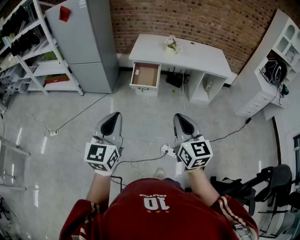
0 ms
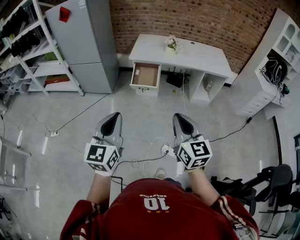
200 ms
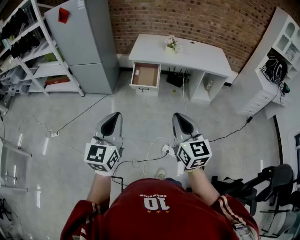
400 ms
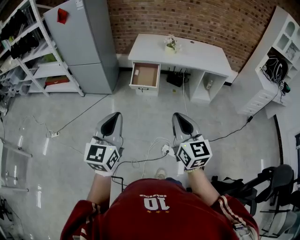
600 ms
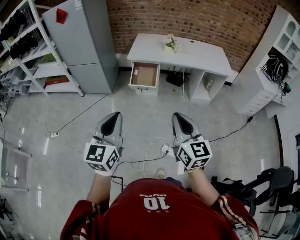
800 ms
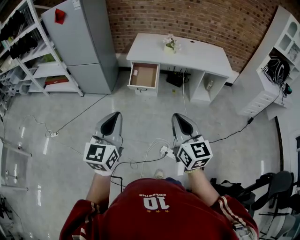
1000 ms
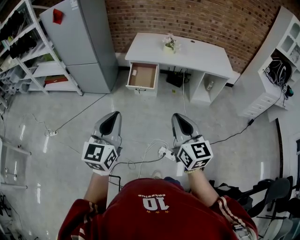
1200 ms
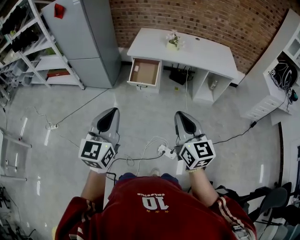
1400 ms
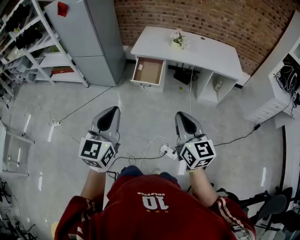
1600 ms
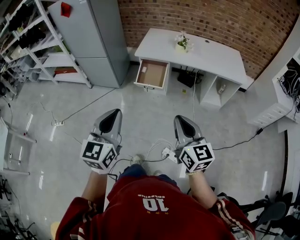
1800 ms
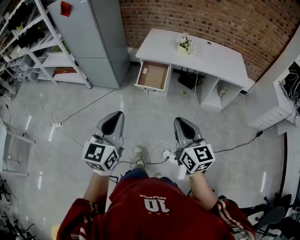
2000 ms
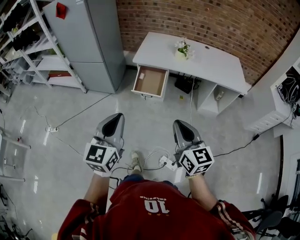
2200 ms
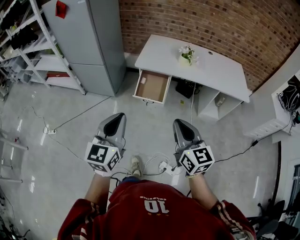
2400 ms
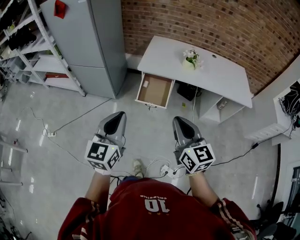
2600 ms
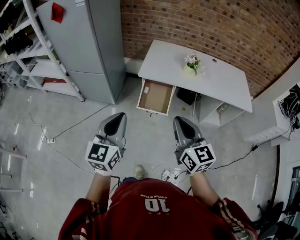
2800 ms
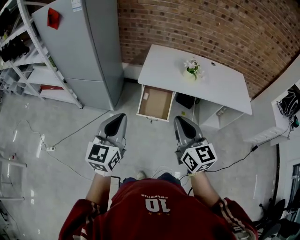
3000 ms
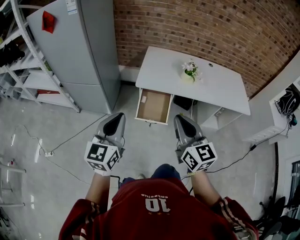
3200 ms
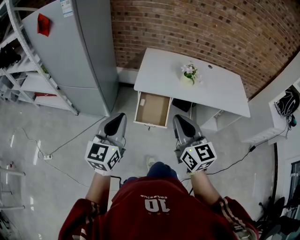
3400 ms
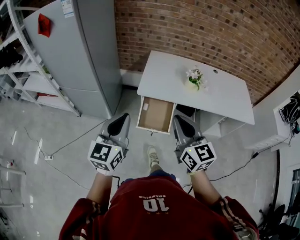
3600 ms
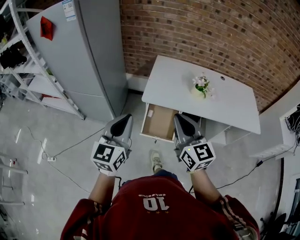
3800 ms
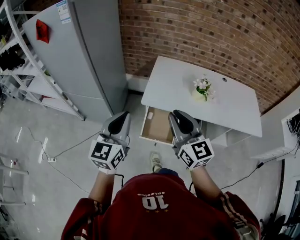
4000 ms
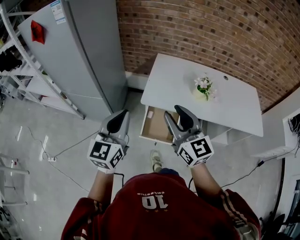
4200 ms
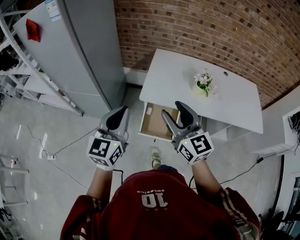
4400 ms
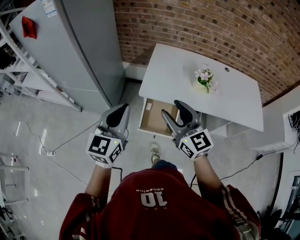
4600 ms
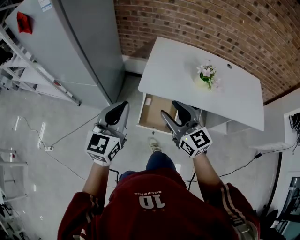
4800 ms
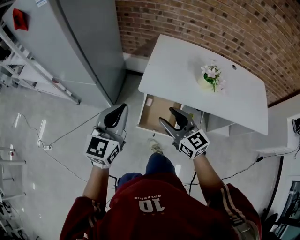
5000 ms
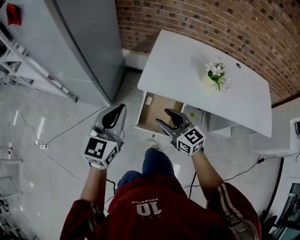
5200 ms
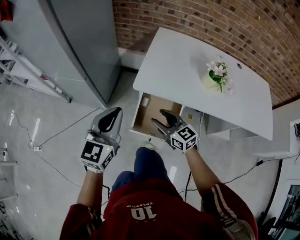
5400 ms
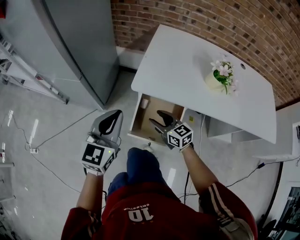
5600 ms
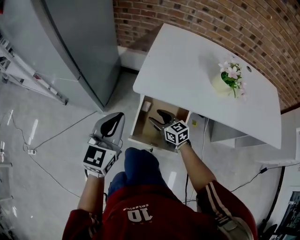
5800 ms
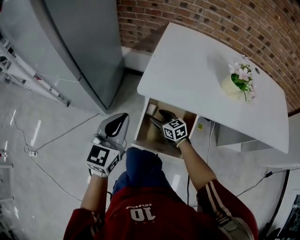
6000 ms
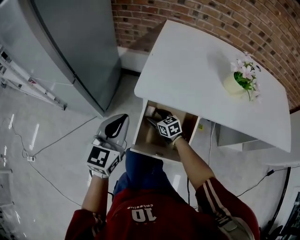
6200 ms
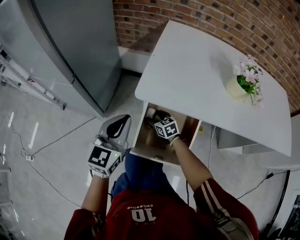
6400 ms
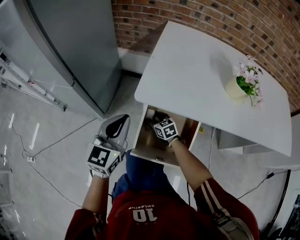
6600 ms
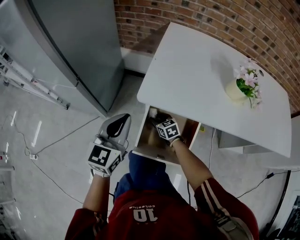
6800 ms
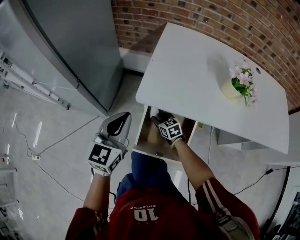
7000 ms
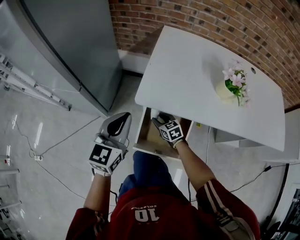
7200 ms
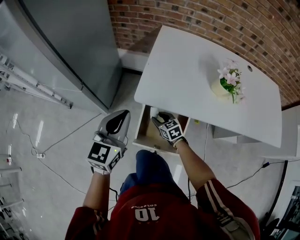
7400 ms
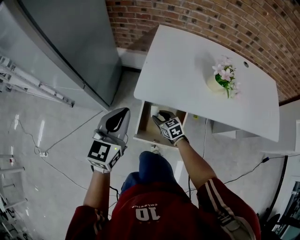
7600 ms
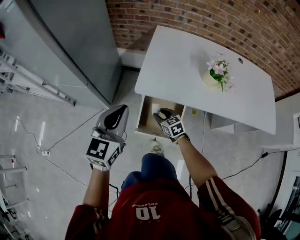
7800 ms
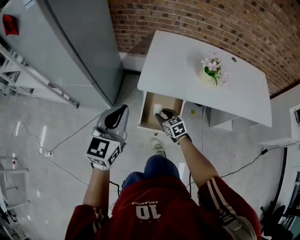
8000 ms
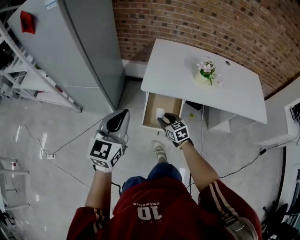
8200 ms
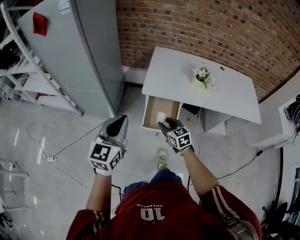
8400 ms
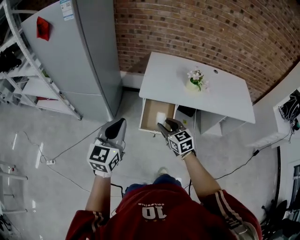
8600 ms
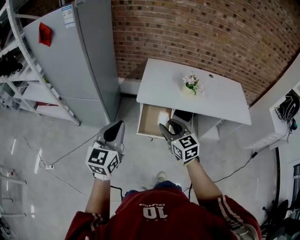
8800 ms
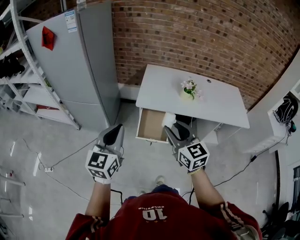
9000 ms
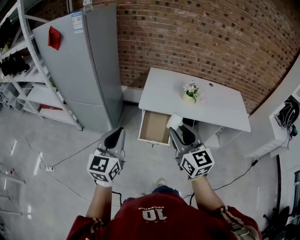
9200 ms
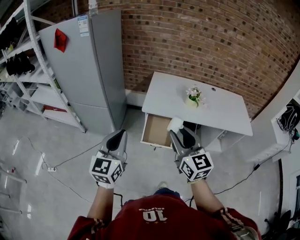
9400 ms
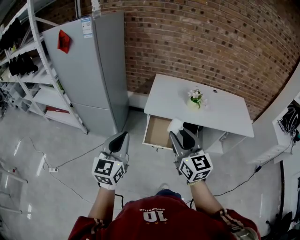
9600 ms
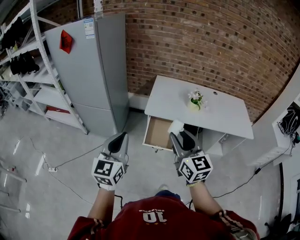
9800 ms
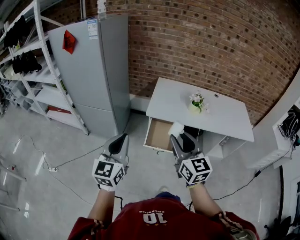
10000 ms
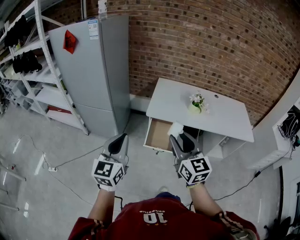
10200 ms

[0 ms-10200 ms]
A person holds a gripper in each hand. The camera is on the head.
0 ms to 1400 ms: Both grippers travel together to the right and forward, approximately 10 cm.
1400 ms to 3000 ms: The right gripper travels forward and to the left by about 35 cm, while the left gripper goes roughly 30 cm forward.
3000 ms to 4400 ms: The two grippers go roughly 25 cm forward. The right gripper opens its fingers.
4400 ms to 5800 ms: The right gripper is displaced downward by about 50 cm, and turns by roughly 30 degrees. The left gripper goes roughly 30 cm downward.
5800 ms to 7200 ms: The left gripper goes some 5 cm forward, and moves roughly 10 cm downward and comes back, while the right gripper travels downward and forward by about 10 cm.
7200 ms to 8800 ms: The two grippers go some 50 cm upward and backward. The right gripper rotates roughly 30 degrees.
8800 ms to 10200 ms: The right gripper moves upward and backward, roughly 15 cm, while the left gripper moves backward, about 5 cm.

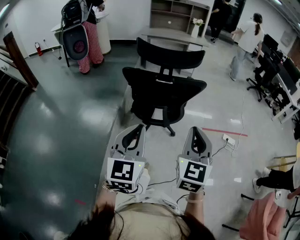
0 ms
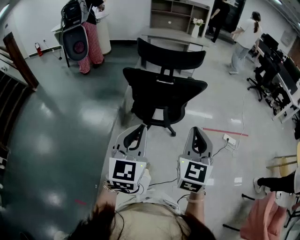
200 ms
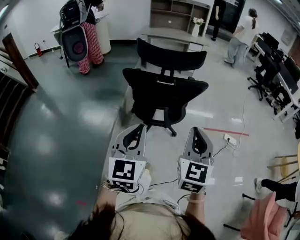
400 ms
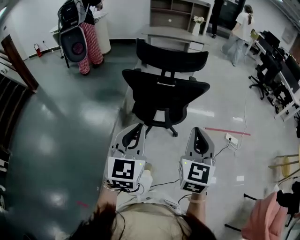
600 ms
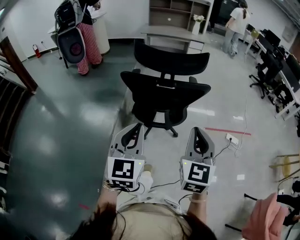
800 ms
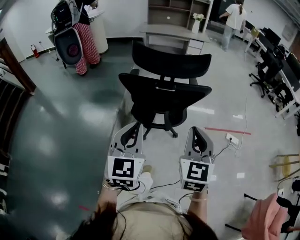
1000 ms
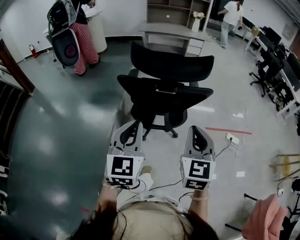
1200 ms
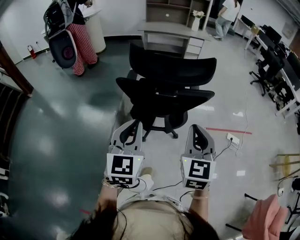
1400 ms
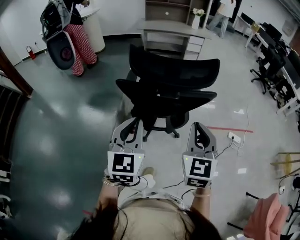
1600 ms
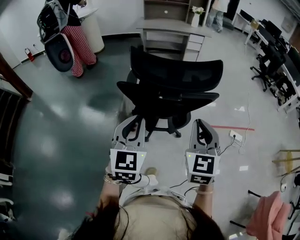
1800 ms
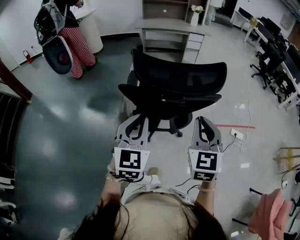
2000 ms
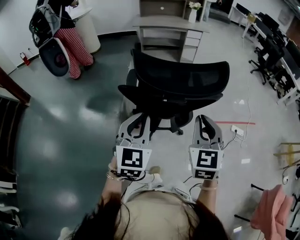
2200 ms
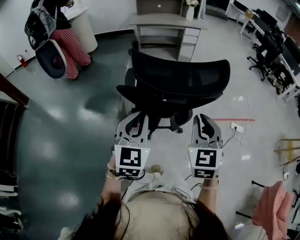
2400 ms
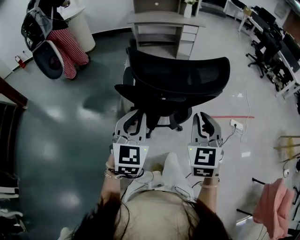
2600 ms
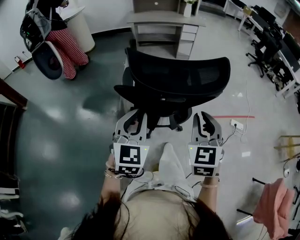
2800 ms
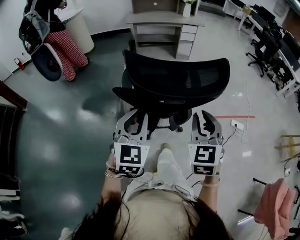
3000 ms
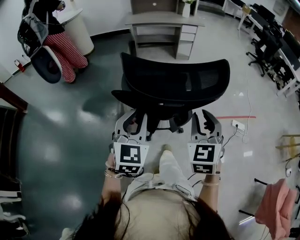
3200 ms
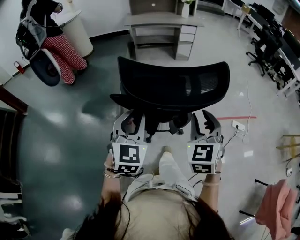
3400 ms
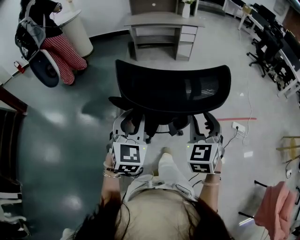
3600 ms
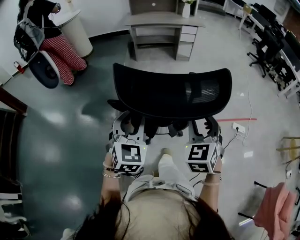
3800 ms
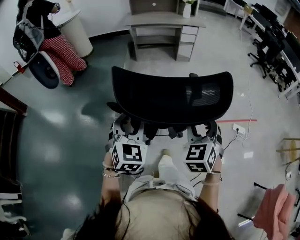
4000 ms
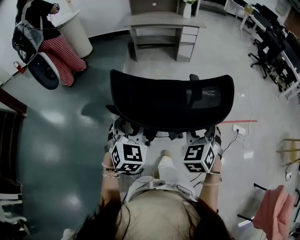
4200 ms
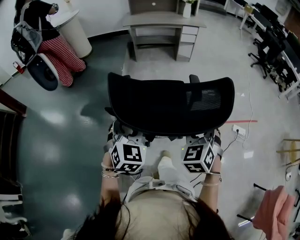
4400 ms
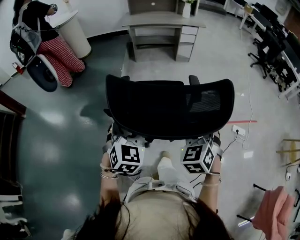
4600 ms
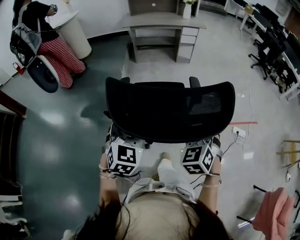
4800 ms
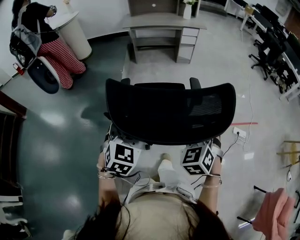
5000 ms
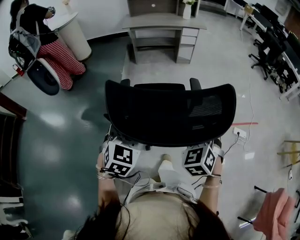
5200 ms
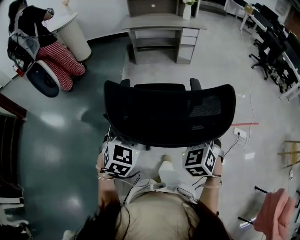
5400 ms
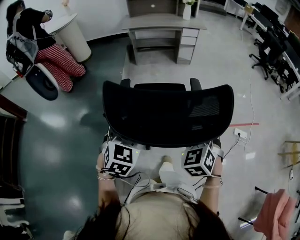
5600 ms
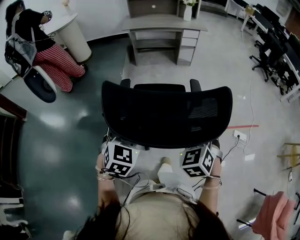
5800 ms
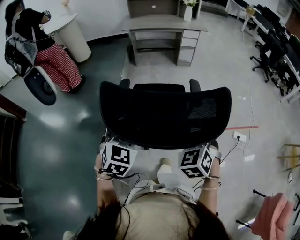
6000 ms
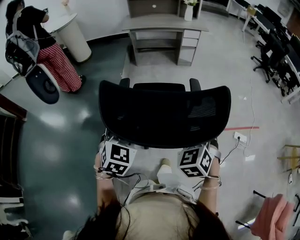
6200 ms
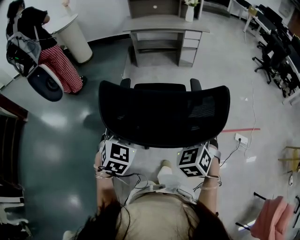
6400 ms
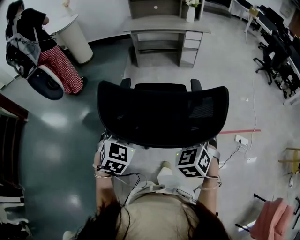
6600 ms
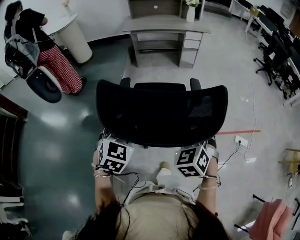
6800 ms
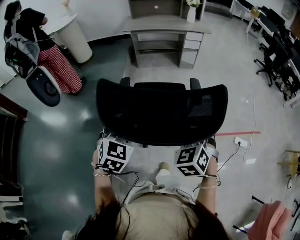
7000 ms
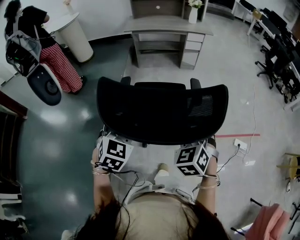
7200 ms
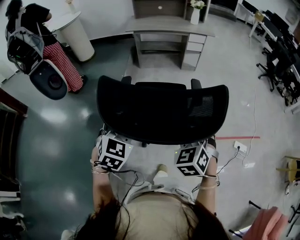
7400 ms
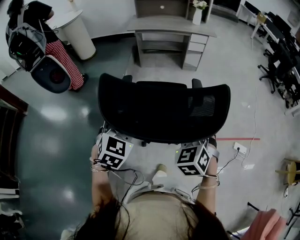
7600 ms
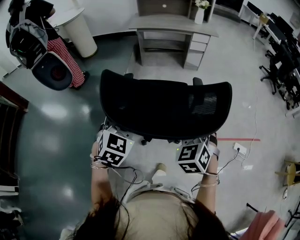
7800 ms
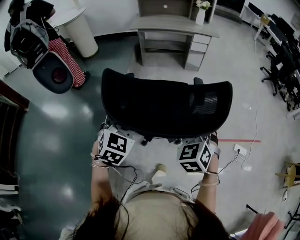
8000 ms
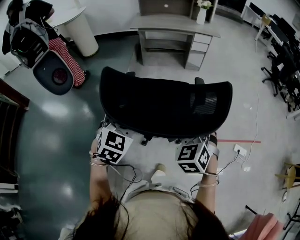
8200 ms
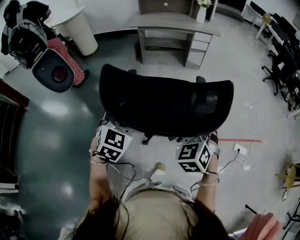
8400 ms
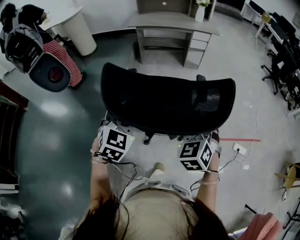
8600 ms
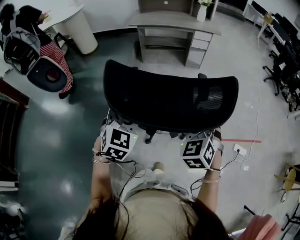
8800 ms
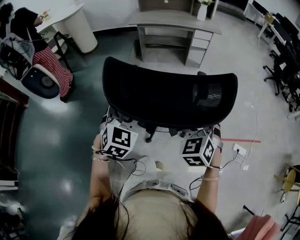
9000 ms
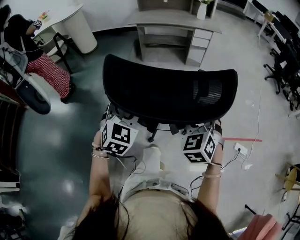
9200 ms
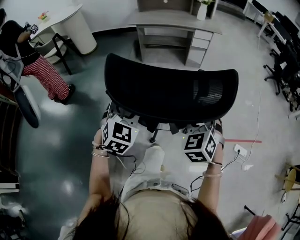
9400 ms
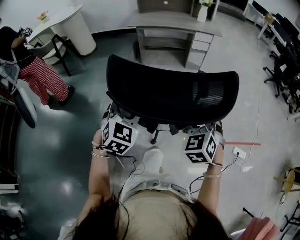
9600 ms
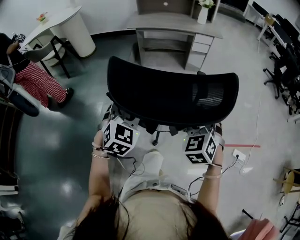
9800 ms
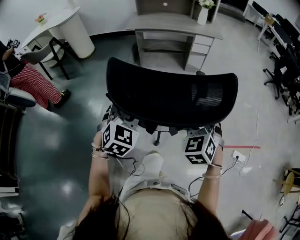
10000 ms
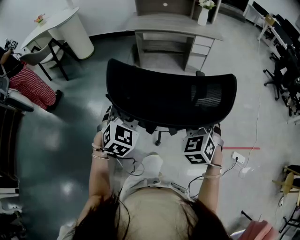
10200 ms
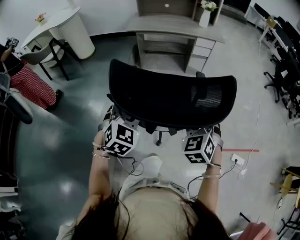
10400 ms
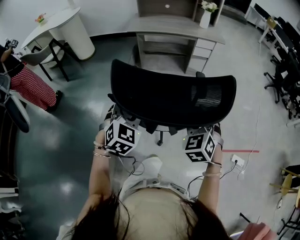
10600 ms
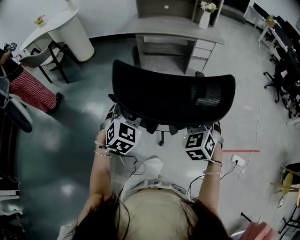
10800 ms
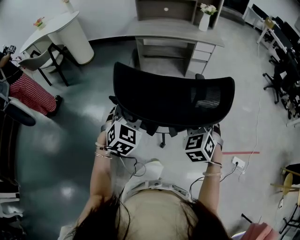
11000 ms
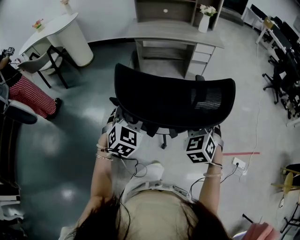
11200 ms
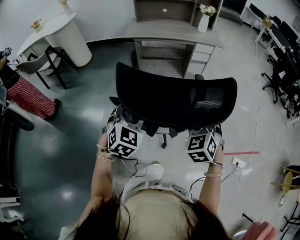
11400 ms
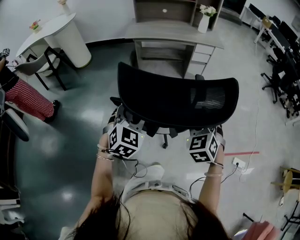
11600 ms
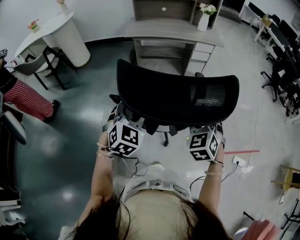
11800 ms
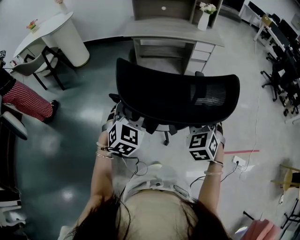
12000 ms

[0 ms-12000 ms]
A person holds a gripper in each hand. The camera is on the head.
0 ms to 1600 ms: The grippers both shift forward by about 15 cm.
1600 ms to 3000 ms: The grippers both shift forward by roughly 10 cm.
3000 ms to 4400 ms: The right gripper is displaced forward and downward by roughly 10 cm, and opens. The left gripper is displaced forward by about 10 cm, and opens its fingers.
4400 ms to 6000 ms: Both grippers travel together forward, approximately 5 cm.
6000 ms to 7600 ms: The grippers both shift forward by about 10 cm.
7600 ms to 9000 ms: The two grippers go about 5 cm forward.
9000 ms to 10400 ms: Both grippers move forward, about 10 cm.
10400 ms to 12000 ms: The grippers both shift forward by roughly 10 cm.

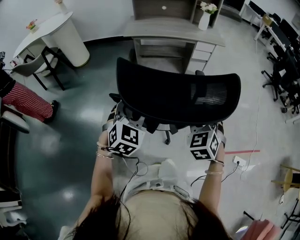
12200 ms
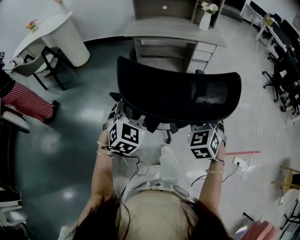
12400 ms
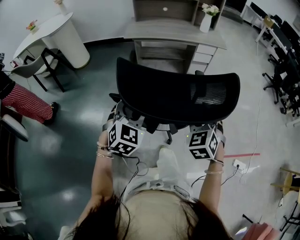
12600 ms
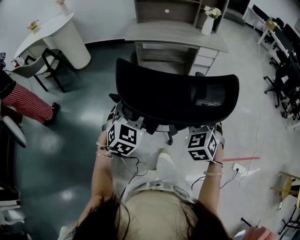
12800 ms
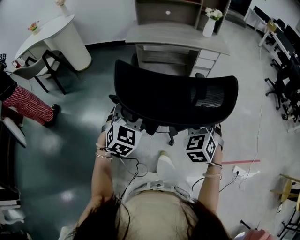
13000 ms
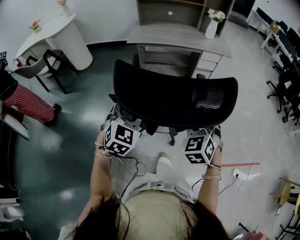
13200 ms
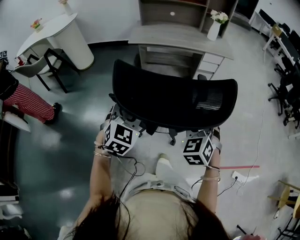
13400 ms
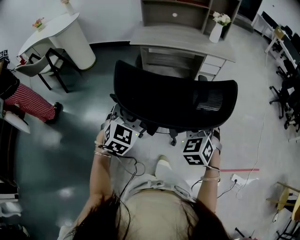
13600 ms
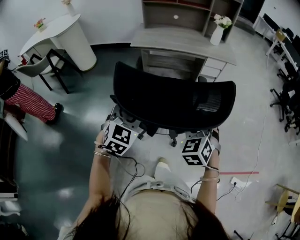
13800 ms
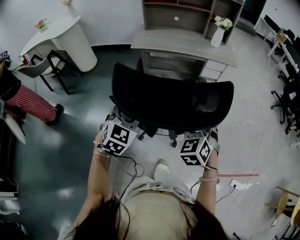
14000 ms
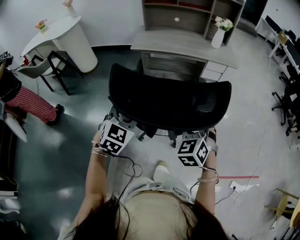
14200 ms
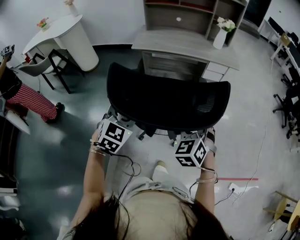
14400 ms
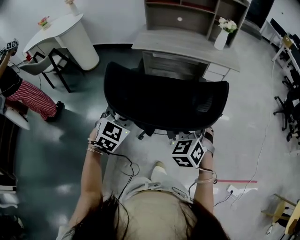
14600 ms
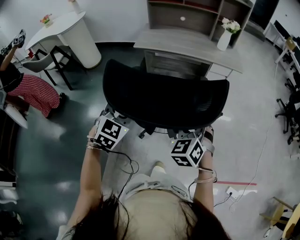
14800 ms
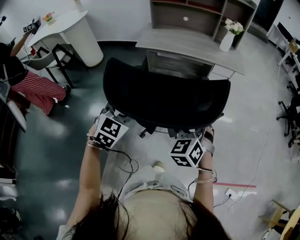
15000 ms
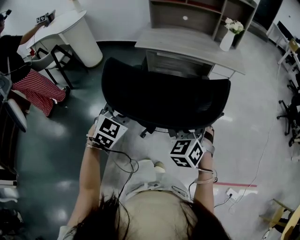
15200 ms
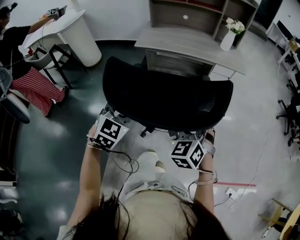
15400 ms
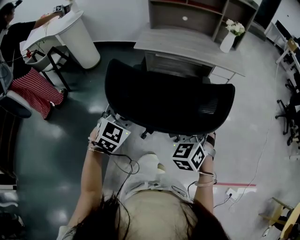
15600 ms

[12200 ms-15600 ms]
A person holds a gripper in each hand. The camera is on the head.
12200 ms to 13800 ms: Both grippers move forward, about 10 cm.
13800 ms to 15600 ms: The two grippers go about 10 cm forward.
